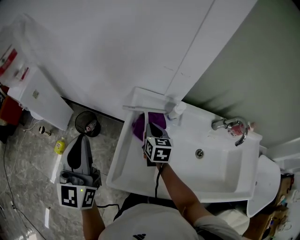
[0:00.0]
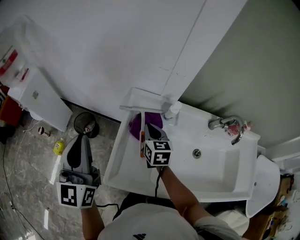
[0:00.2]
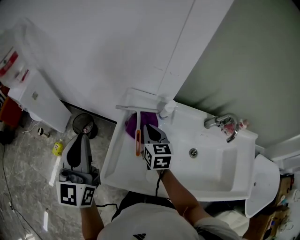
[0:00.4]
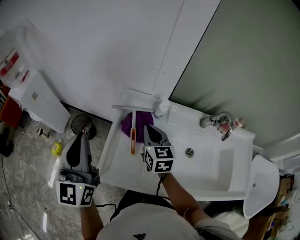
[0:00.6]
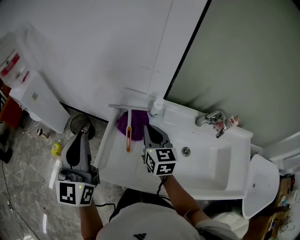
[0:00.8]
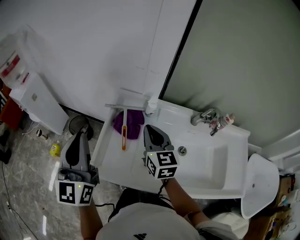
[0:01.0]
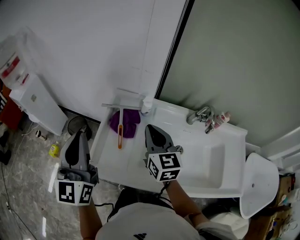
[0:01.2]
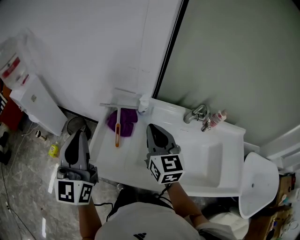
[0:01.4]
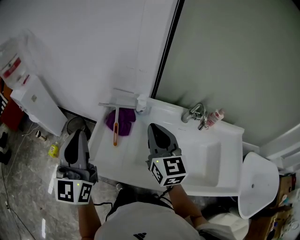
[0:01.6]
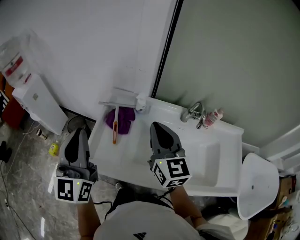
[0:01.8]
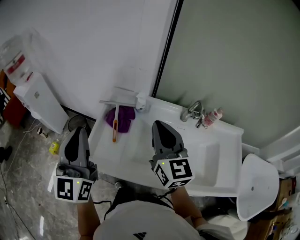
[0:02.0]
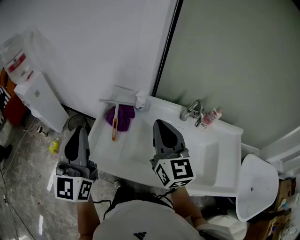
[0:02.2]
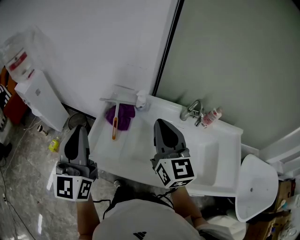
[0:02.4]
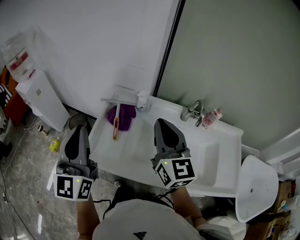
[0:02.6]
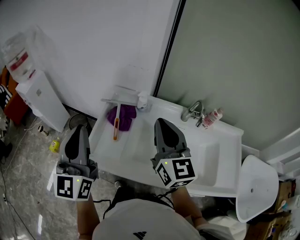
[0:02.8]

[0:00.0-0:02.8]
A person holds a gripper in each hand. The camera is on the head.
0:00.0 to 0:01.4: The right gripper heads upward, backward and to the right, covering roughly 25 cm, and turns by about 30 degrees. The left gripper moves to the right, backward and upward, some 15 cm.
0:01.4 to 0:02.8: The left gripper moves approximately 5 cm; the right gripper heads upward and backward, covering about 10 cm.

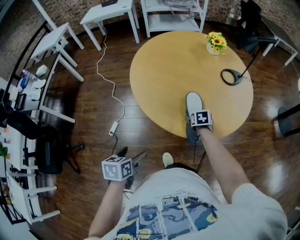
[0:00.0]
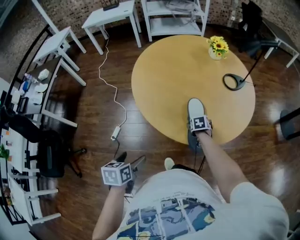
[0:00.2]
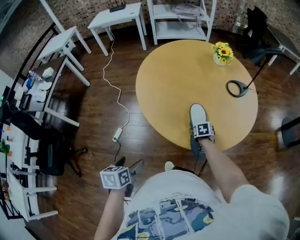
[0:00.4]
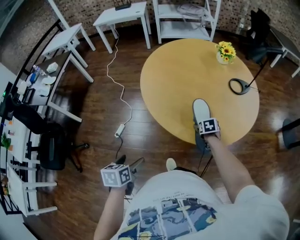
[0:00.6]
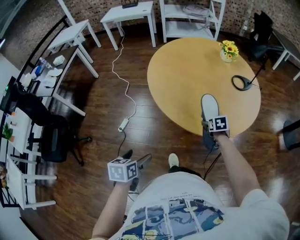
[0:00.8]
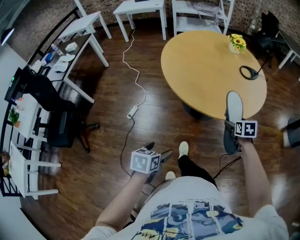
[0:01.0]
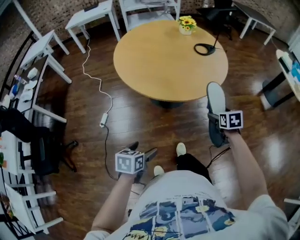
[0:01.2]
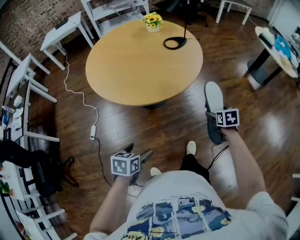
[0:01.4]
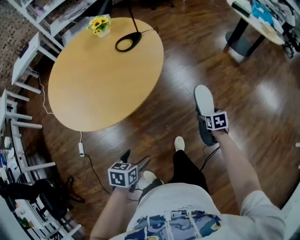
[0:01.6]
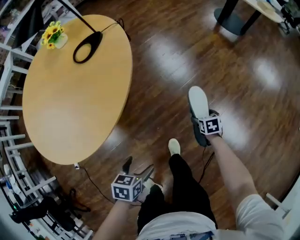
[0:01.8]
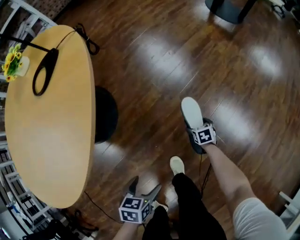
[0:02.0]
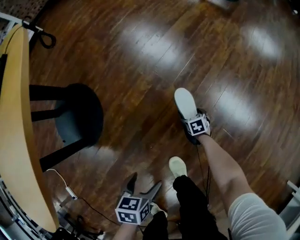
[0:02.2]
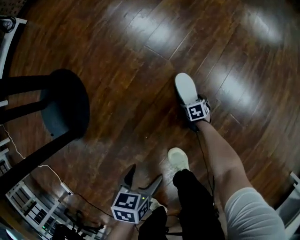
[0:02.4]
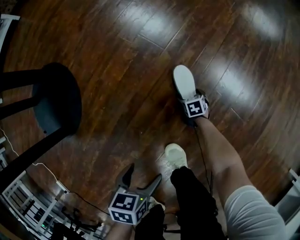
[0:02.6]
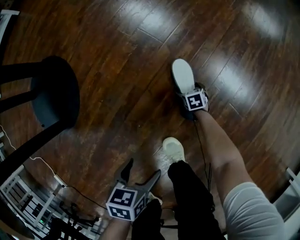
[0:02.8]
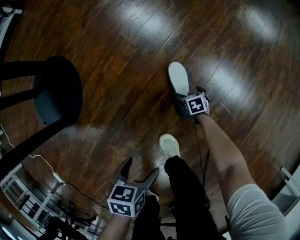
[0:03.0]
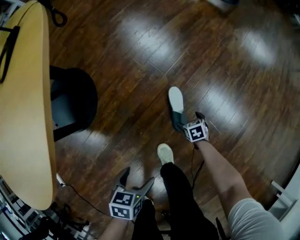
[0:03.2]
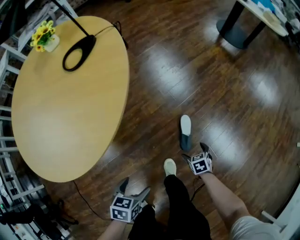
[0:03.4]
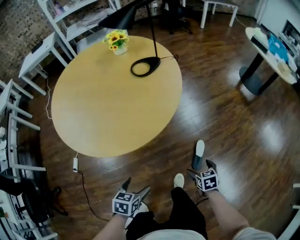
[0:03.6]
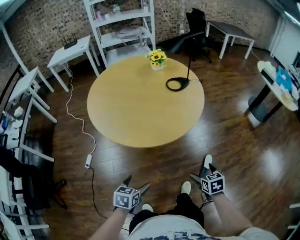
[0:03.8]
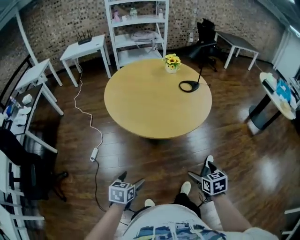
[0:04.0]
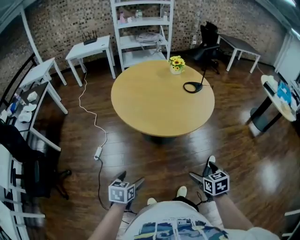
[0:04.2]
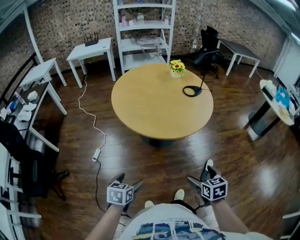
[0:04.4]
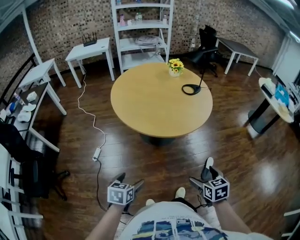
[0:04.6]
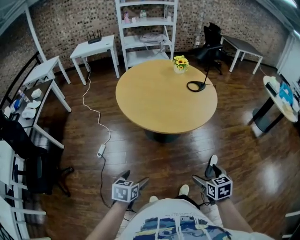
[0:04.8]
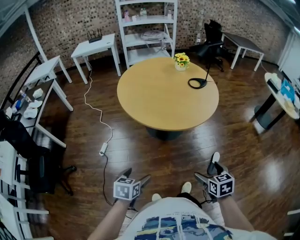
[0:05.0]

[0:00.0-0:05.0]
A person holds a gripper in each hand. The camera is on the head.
0:00.0 to 0:01.6: The two grippers travel together, some 50 cm. The right gripper changes its angle by approximately 30 degrees; the left gripper changes its angle by about 40 degrees.
0:01.6 to 0:03.4: The two grippers go roughly 25 cm downward.
0:03.4 to 0:05.0: Both grippers are carried some 50 cm. The right gripper travels upward by about 50 cm, and changes its angle by approximately 30 degrees. Meanwhile the left gripper changes its angle by roughly 40 degrees.

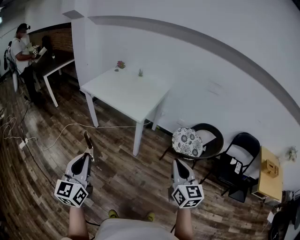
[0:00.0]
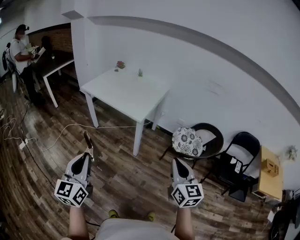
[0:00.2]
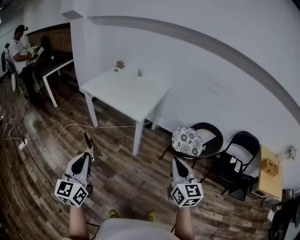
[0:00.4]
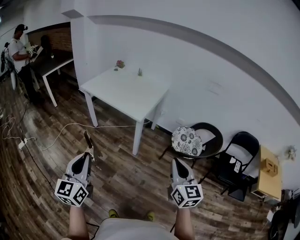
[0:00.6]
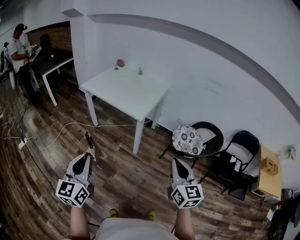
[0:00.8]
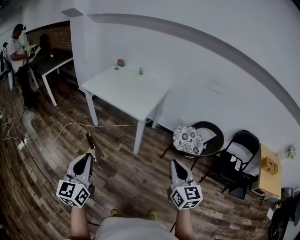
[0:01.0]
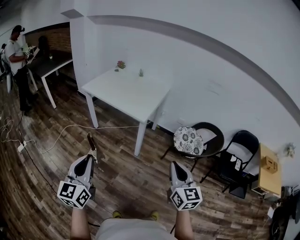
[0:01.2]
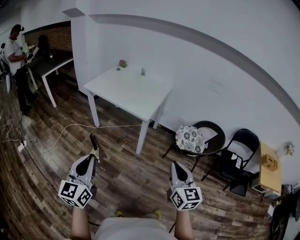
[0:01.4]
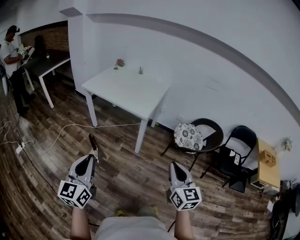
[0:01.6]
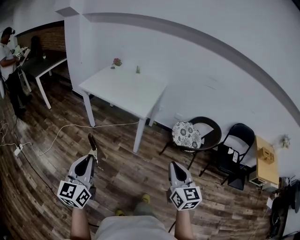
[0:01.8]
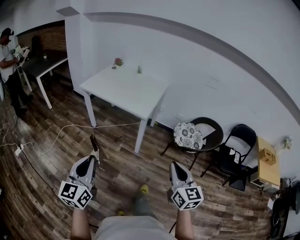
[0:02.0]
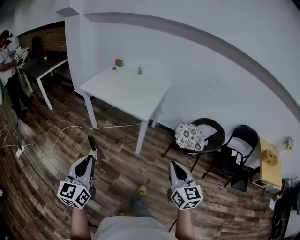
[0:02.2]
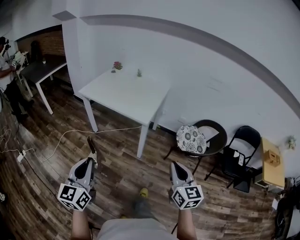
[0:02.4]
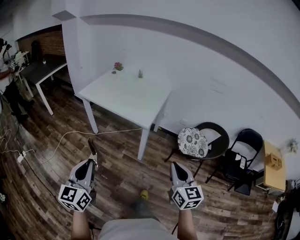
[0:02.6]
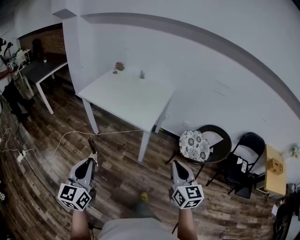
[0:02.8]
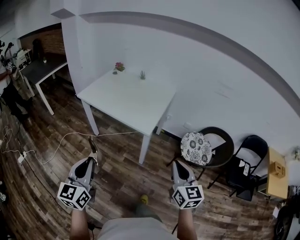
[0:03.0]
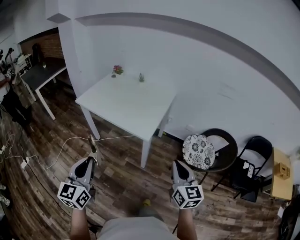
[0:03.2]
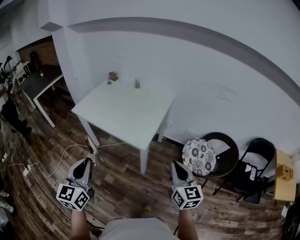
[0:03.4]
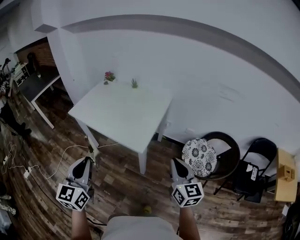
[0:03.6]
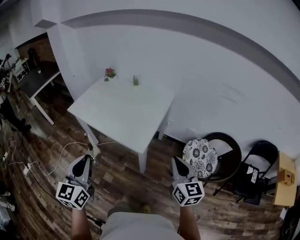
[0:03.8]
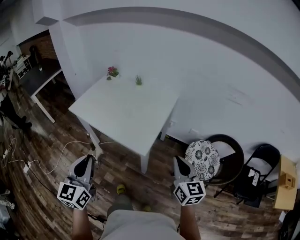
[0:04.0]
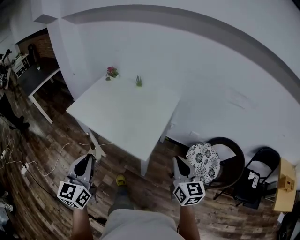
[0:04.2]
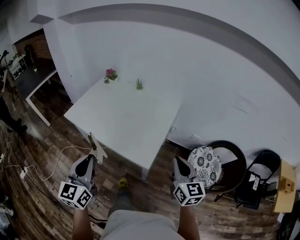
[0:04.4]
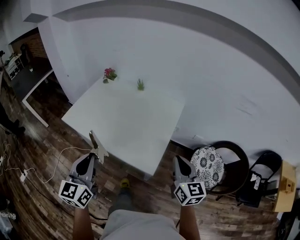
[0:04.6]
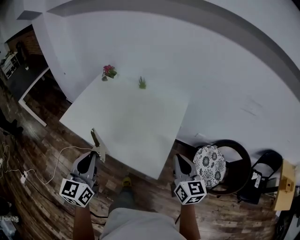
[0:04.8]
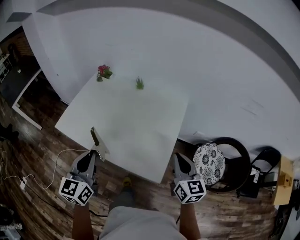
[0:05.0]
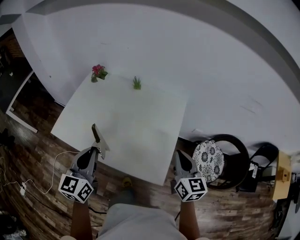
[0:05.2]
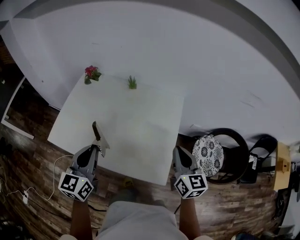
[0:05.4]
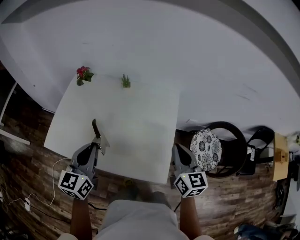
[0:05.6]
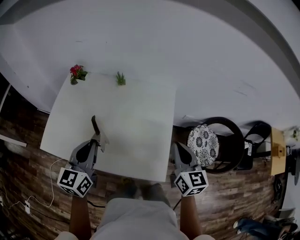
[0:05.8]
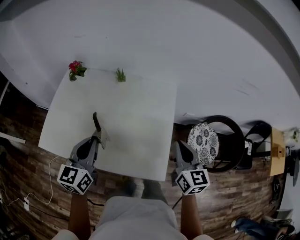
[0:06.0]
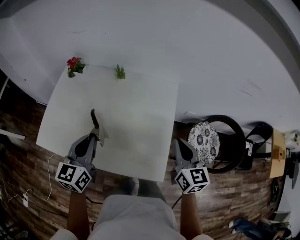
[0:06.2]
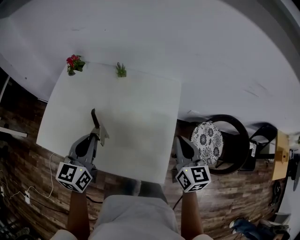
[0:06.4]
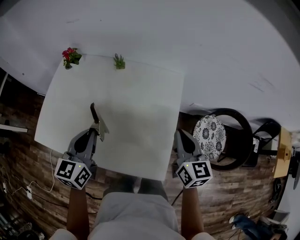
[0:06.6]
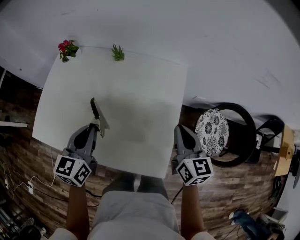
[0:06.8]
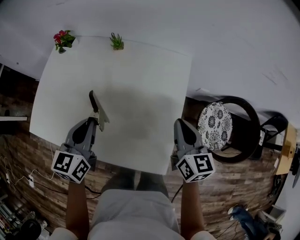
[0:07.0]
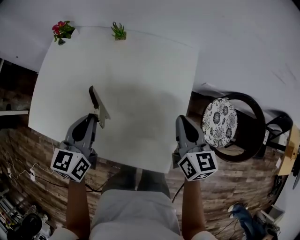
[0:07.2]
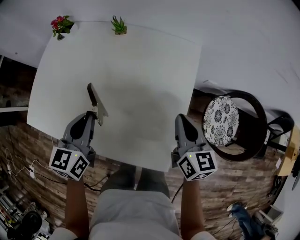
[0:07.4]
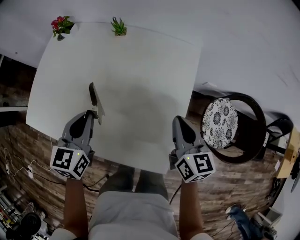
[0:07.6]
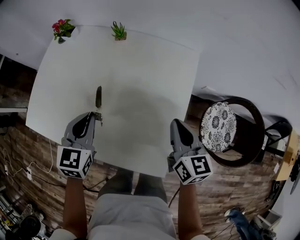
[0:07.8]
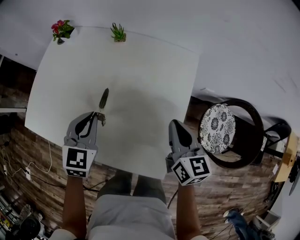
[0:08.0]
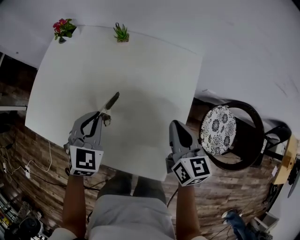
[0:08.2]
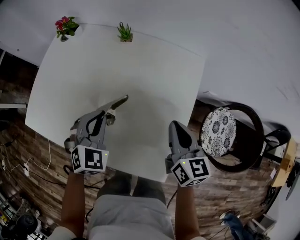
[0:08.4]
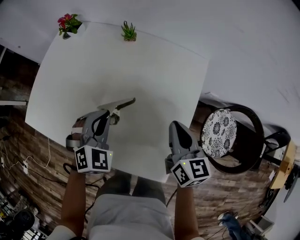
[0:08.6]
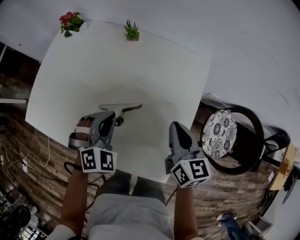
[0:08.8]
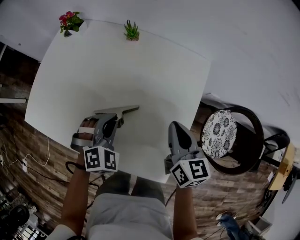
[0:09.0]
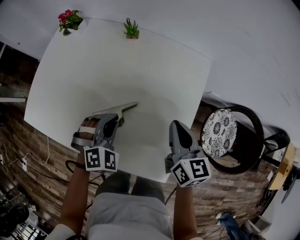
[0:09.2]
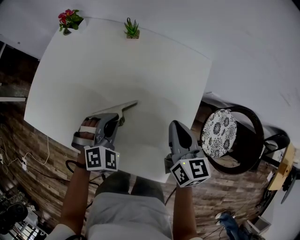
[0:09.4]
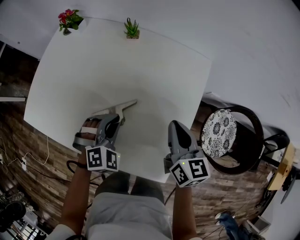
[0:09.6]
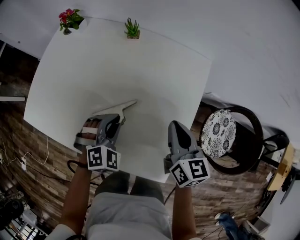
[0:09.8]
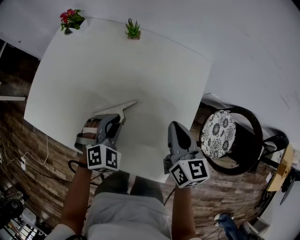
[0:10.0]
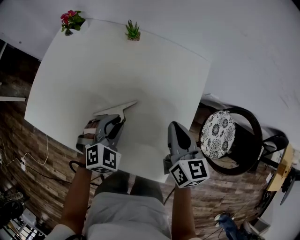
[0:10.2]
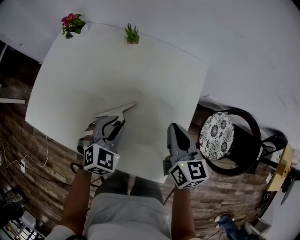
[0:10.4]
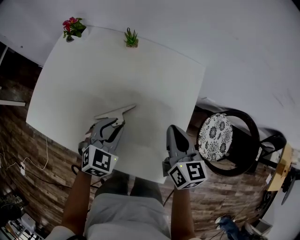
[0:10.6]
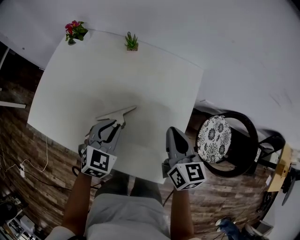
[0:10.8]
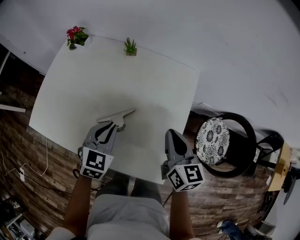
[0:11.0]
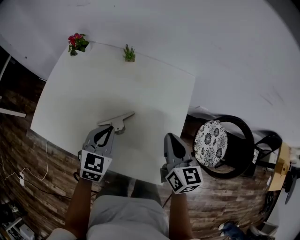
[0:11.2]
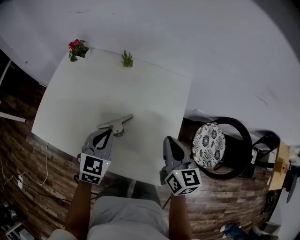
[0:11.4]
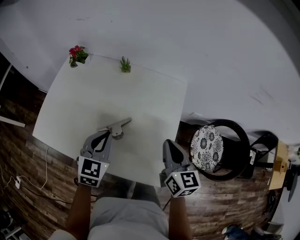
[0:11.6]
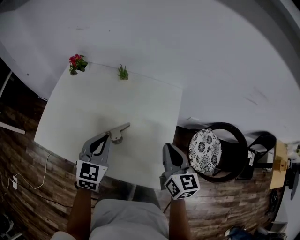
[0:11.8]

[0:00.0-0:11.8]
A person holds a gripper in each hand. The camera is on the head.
0:00.0 to 0:01.4: The grippers both shift to the left by about 10 cm.
0:01.4 to 0:03.0: The two grippers go roughly 20 cm forward.
0:03.0 to 0:04.4: The grippers both shift forward by some 30 cm.
0:04.4 to 0:06.0: The left gripper heads forward, covering some 30 cm, and changes its angle by roughly 30 degrees. The right gripper goes roughly 20 cm forward and to the left.
0:06.0 to 0:07.4: Both grippers travel together downward and forward, some 15 cm.
0:07.4 to 0:08.8: The left gripper heads downward and to the right, covering approximately 10 cm, and rotates around the line of its fingers by approximately 60 degrees, clockwise from behind. Meanwhile the right gripper shifts by roughly 5 cm.
0:08.8 to 0:10.4: The left gripper opens up.
0:10.4 to 0:11.8: The left gripper goes some 15 cm upward, turns by some 30 degrees, and closes up. The right gripper is displaced upward and backward by about 10 cm.

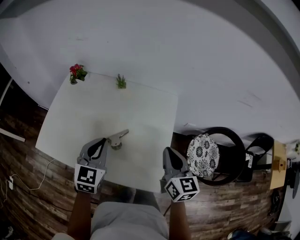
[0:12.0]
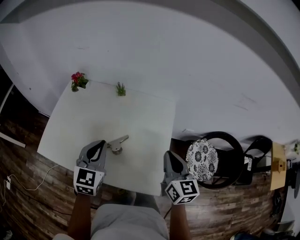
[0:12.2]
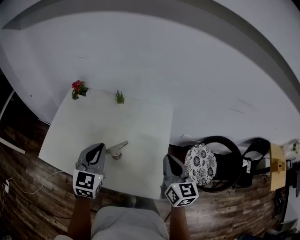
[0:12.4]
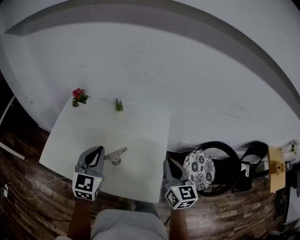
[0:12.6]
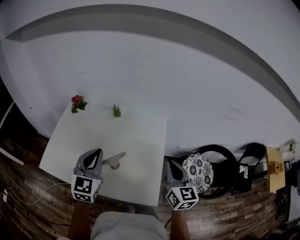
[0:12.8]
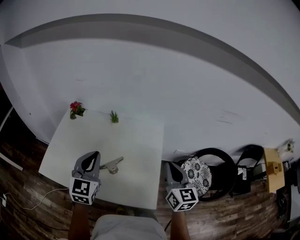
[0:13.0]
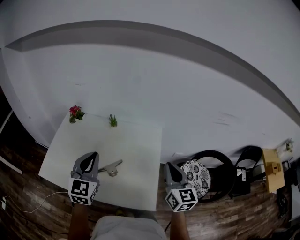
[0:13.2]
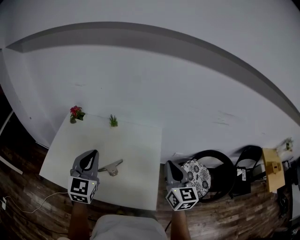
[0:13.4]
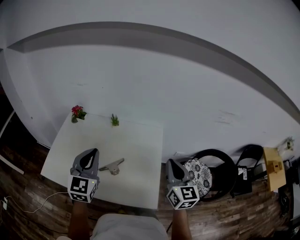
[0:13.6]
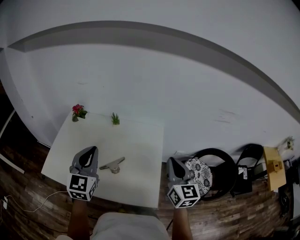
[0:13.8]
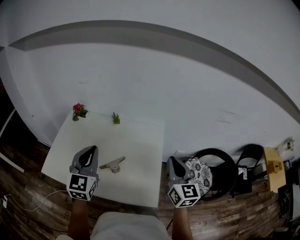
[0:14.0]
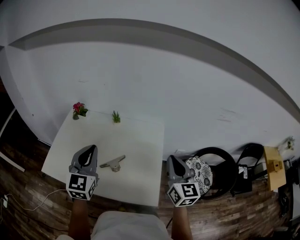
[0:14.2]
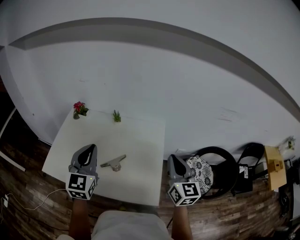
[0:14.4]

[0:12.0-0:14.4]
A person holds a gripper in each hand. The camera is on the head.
0:12.0 to 0:13.2: The two grippers go approximately 10 cm upward.
0:13.2 to 0:14.4: The grippers make only small movements.

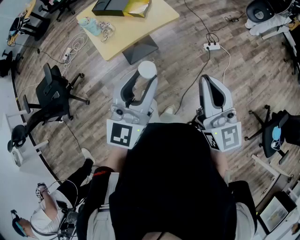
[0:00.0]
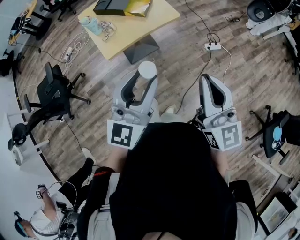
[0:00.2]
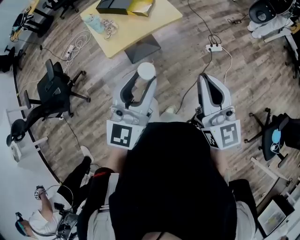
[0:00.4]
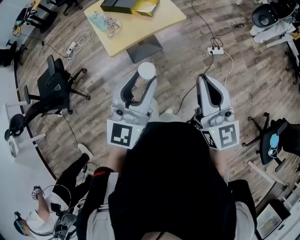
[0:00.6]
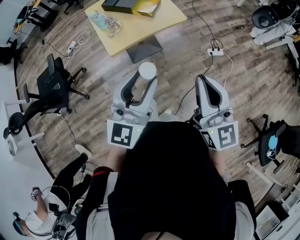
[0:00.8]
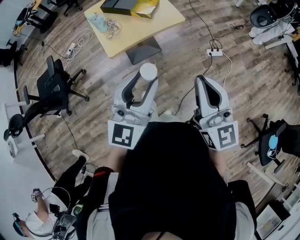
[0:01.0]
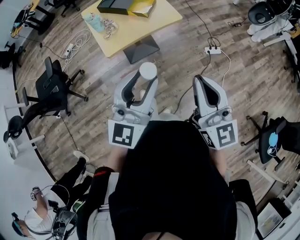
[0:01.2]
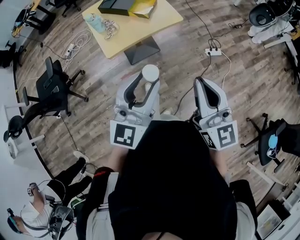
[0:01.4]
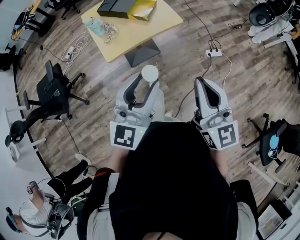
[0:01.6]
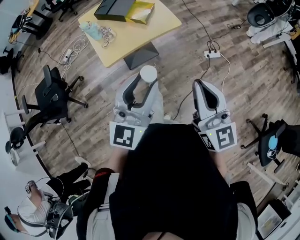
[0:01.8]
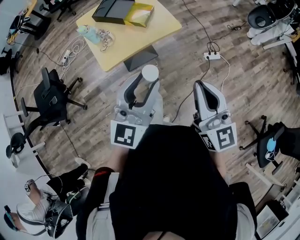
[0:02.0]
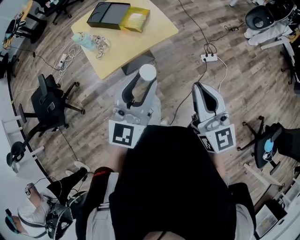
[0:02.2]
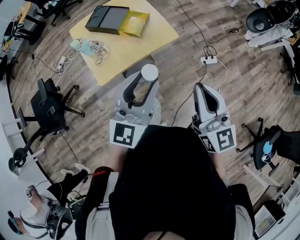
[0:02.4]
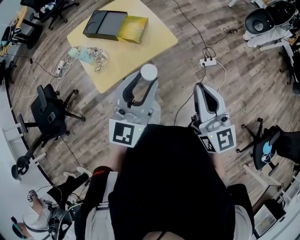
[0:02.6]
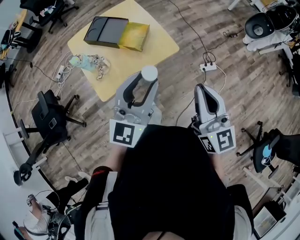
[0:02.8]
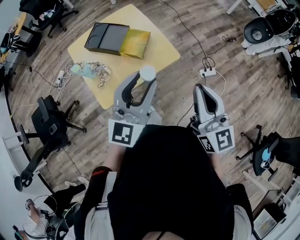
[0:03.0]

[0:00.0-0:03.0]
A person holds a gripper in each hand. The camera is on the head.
0:00.0 to 0:01.6: The grippers move only a little.
0:01.6 to 0:03.0: The grippers both shift forward by approximately 25 cm.
